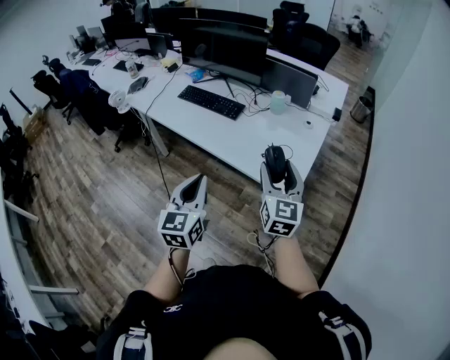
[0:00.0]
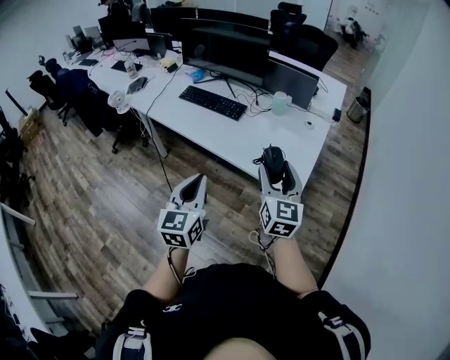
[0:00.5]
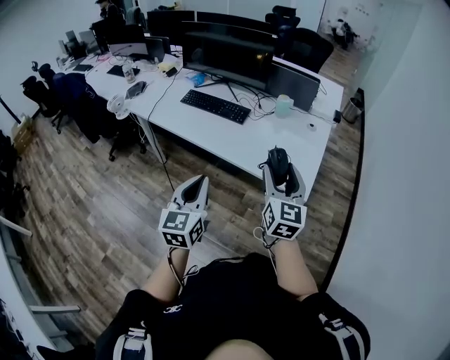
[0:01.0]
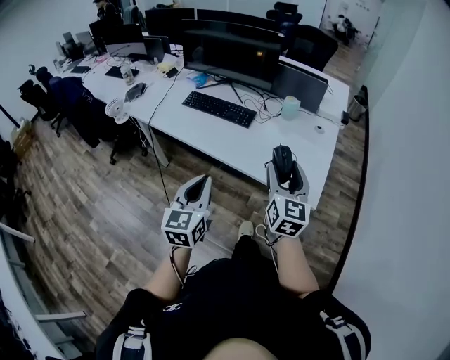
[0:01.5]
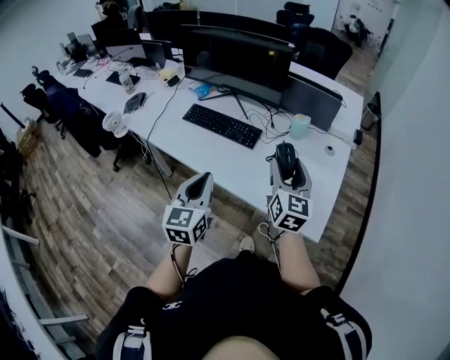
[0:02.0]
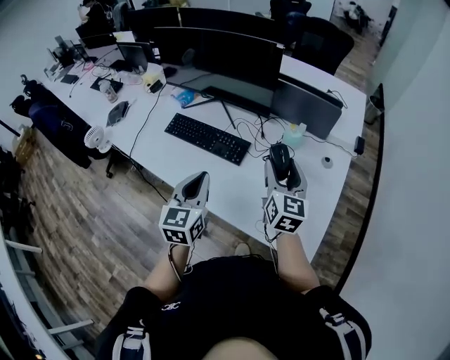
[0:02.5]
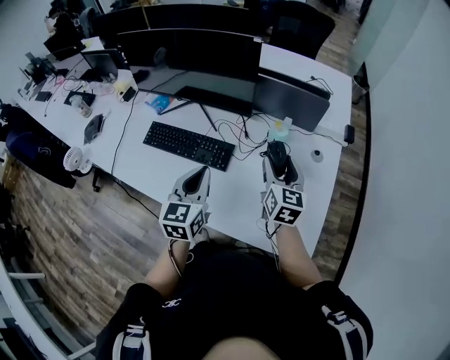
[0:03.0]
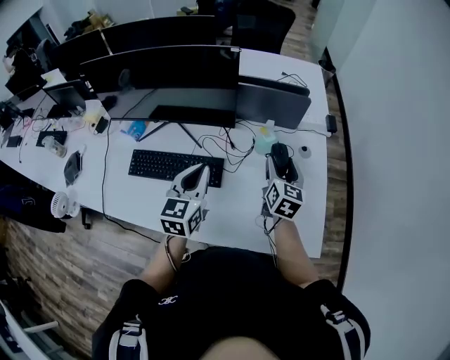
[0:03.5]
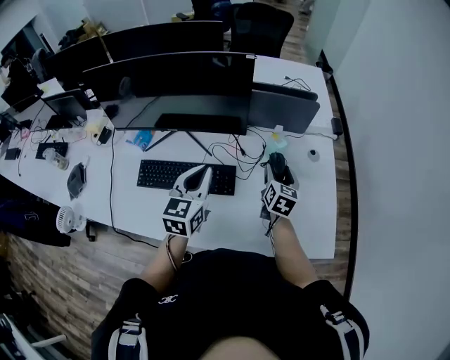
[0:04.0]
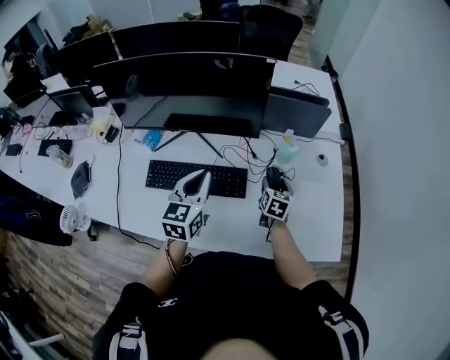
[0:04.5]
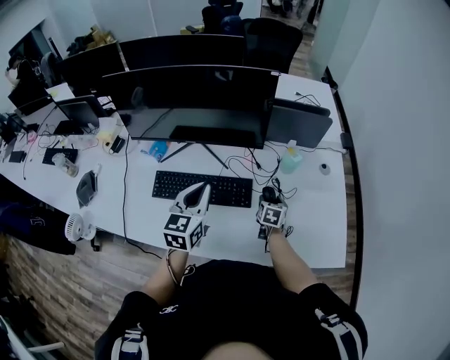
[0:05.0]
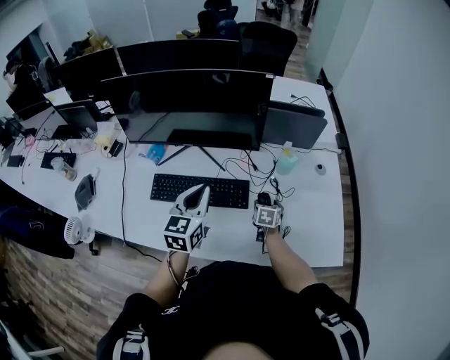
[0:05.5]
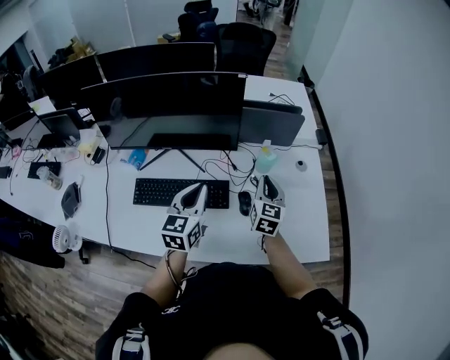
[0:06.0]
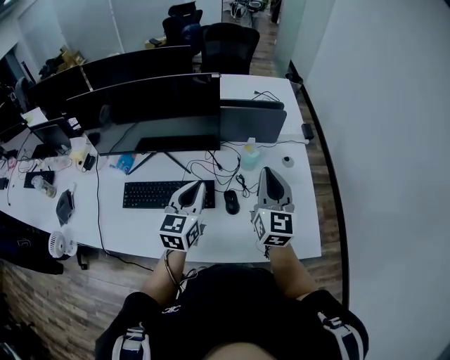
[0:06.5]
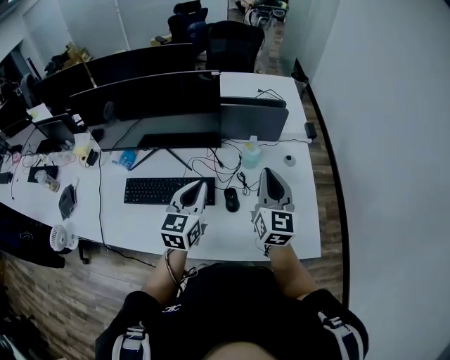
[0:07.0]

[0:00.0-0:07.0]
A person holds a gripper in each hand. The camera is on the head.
0:00.0 to 0:02.0: Both grippers move forward and to the left, some 25 cm.
0:02.0 to 0:03.5: The grippers both shift forward by approximately 30 cm. The left gripper swivels some 20 degrees, while the right gripper rotates approximately 30 degrees.
0:03.5 to 0:05.0: The left gripper shifts roughly 15 cm to the left; the right gripper goes approximately 25 cm downward and to the left, and swivels roughly 30 degrees.
0:05.0 to 0:07.0: The right gripper heads upward, covering some 35 cm, points its fingers roughly 50 degrees further upward, and closes up; the left gripper shifts approximately 15 cm to the right.

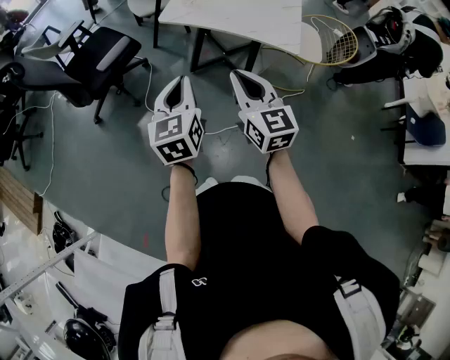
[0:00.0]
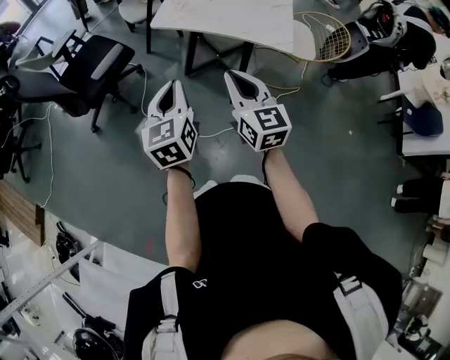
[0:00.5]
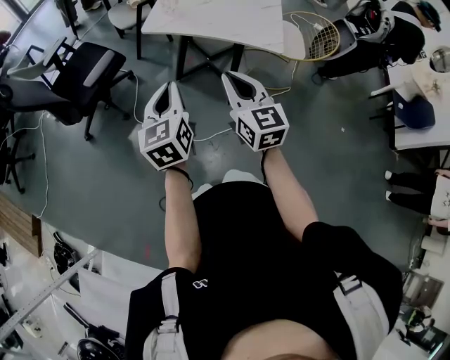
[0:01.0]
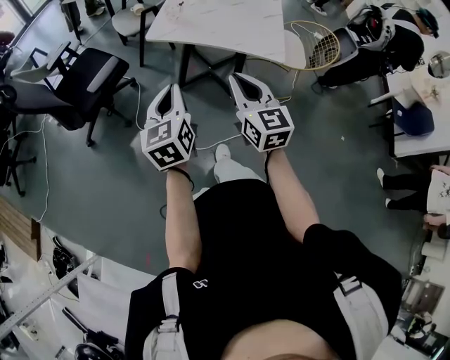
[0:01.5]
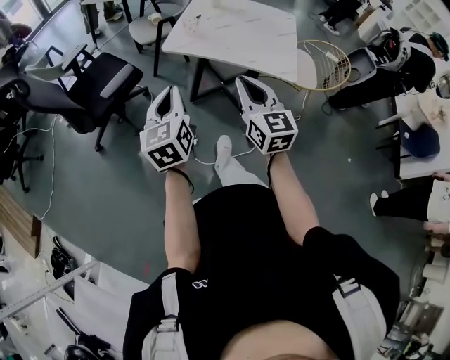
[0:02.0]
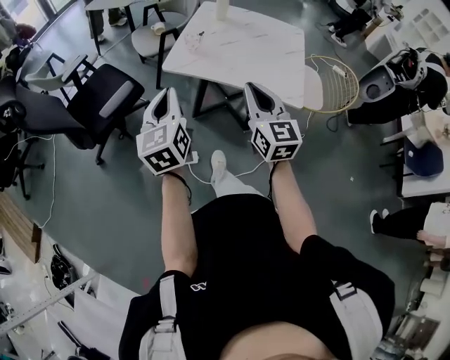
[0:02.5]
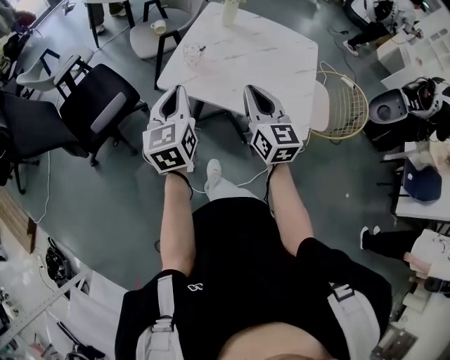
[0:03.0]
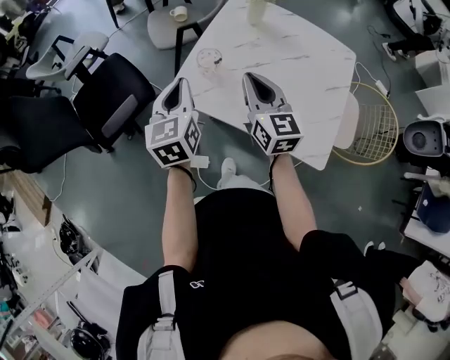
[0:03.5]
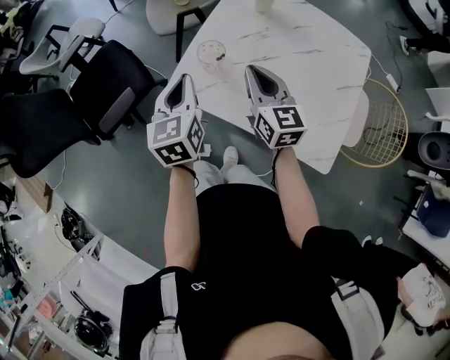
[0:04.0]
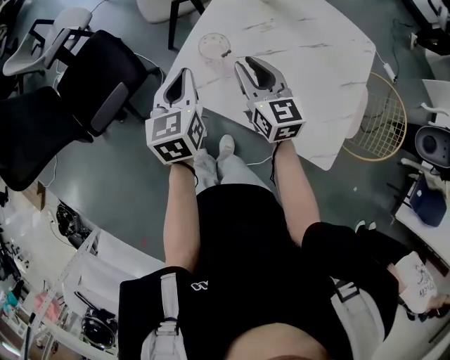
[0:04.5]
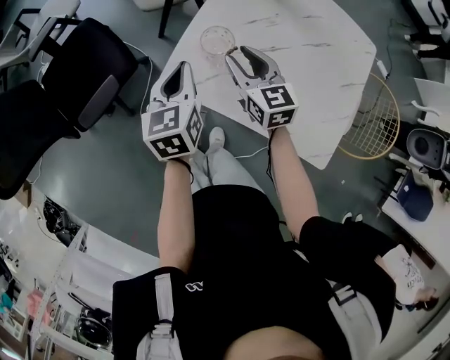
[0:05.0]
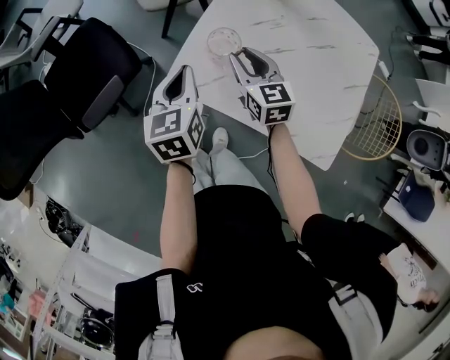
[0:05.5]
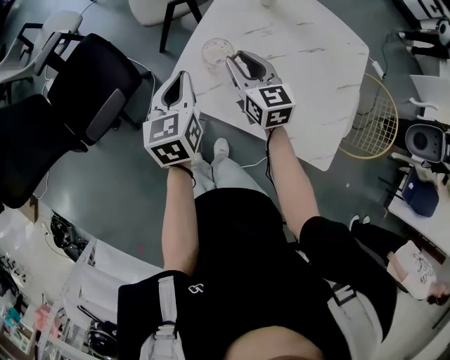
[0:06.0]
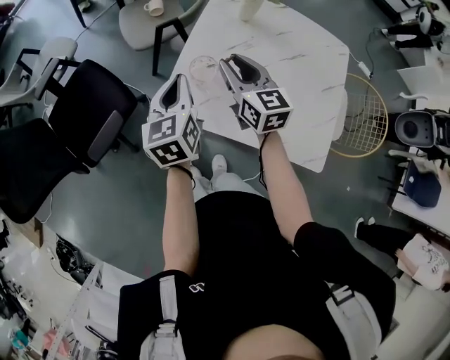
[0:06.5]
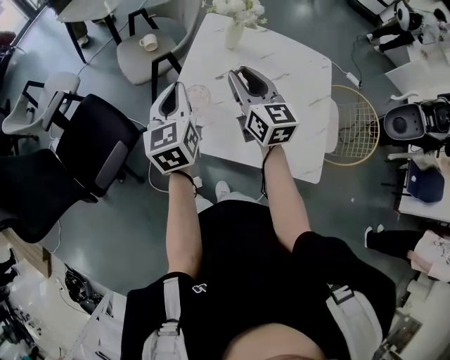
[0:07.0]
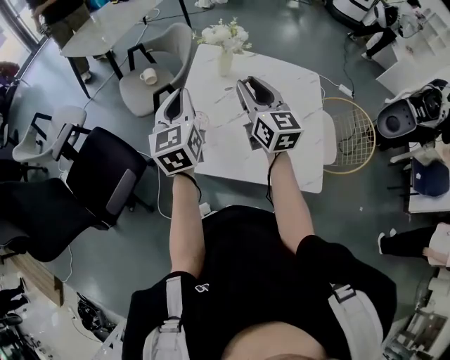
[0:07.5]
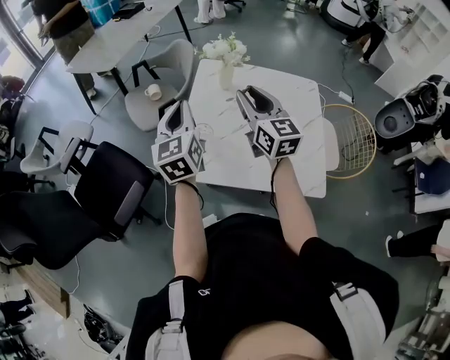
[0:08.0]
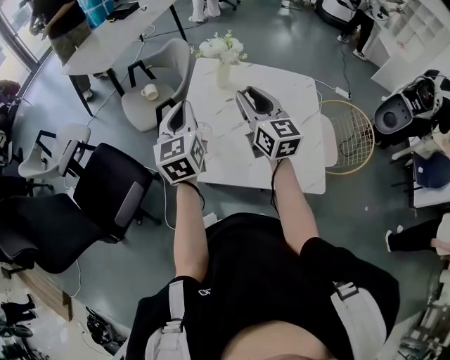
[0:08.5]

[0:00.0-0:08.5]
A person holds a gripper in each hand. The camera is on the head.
0:00.0 to 0:02.0: The grippers both shift forward by approximately 10 cm.
0:02.0 to 0:04.0: The pair of grippers is taken forward, some 40 cm.
0:04.0 to 0:06.5: Both grippers travel together forward, approximately 5 cm. The right gripper goes downward and returns, roughly 10 cm each way, and opens its fingers. Meanwhile the left gripper travels downward and back again, roughly 10 cm each way.
0:06.5 to 0:08.5: The left gripper goes roughly 15 cm upward, while the right gripper moves upward and to the right, about 15 cm.

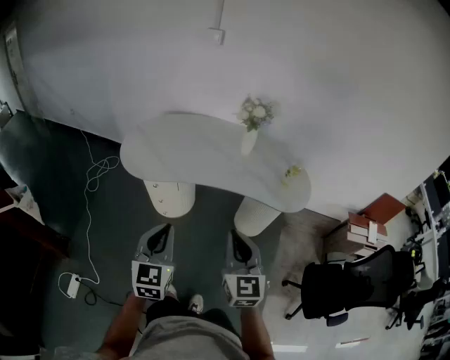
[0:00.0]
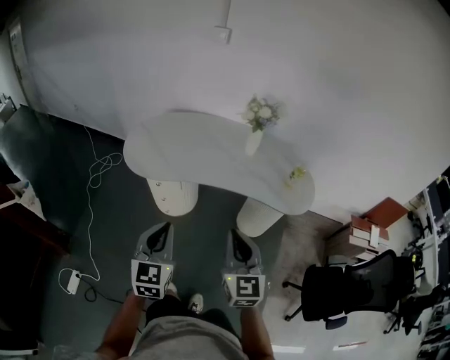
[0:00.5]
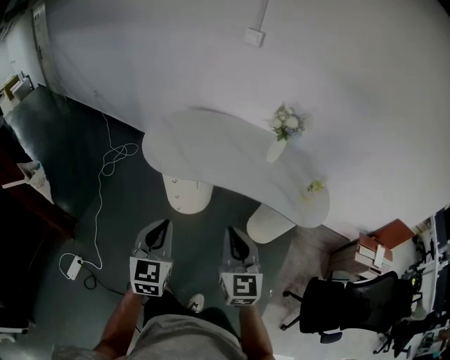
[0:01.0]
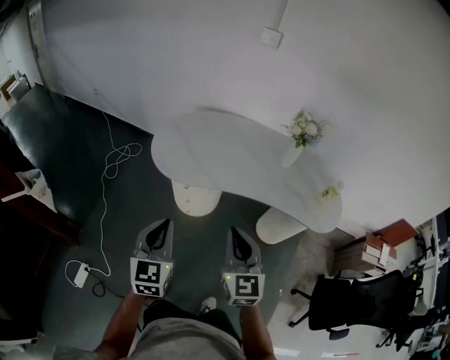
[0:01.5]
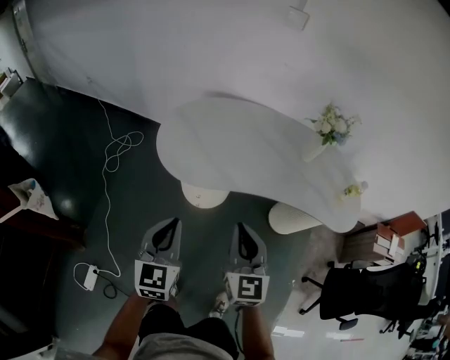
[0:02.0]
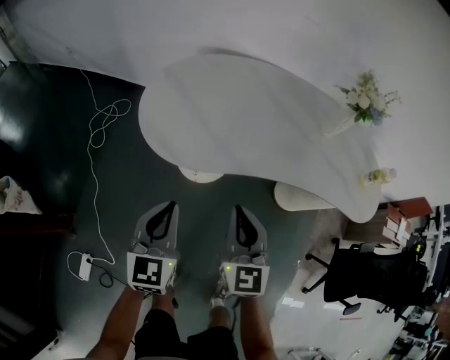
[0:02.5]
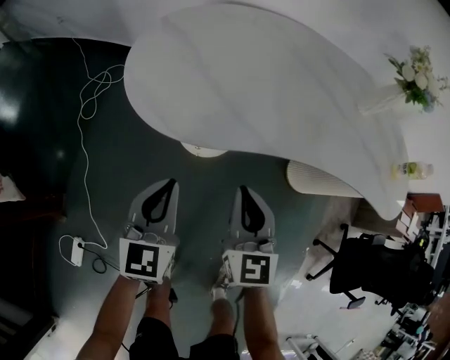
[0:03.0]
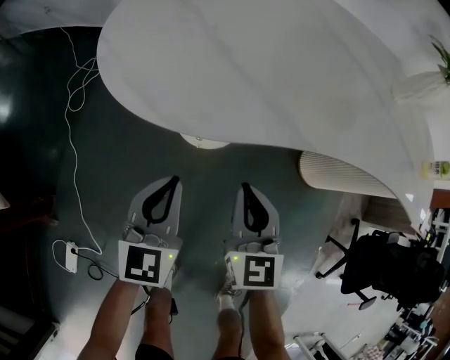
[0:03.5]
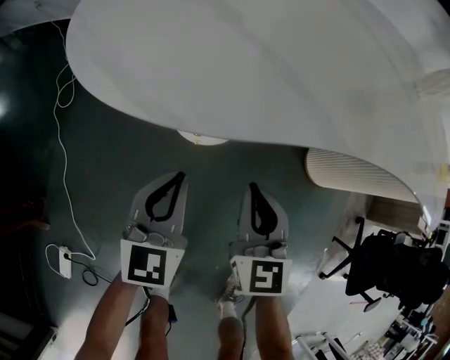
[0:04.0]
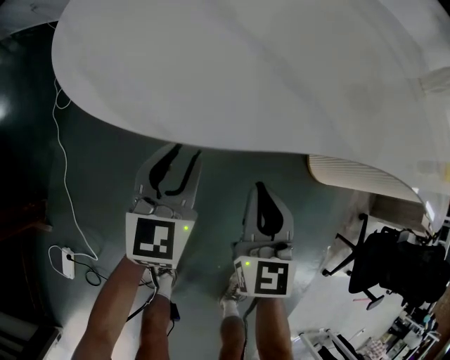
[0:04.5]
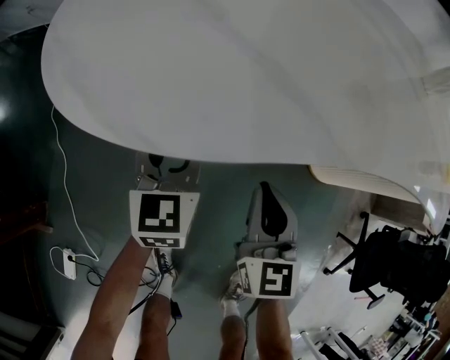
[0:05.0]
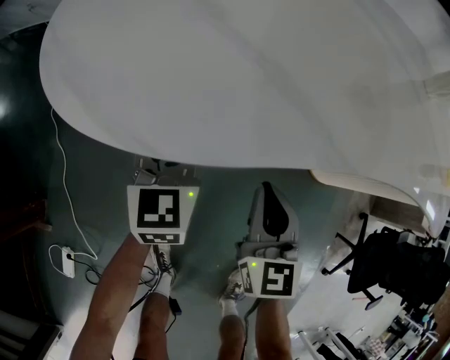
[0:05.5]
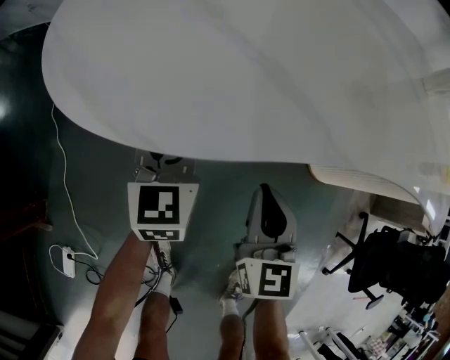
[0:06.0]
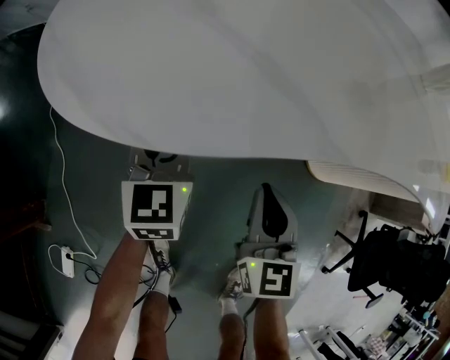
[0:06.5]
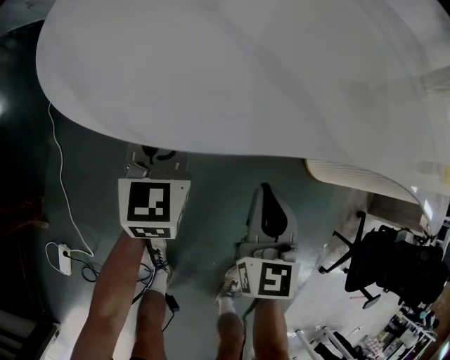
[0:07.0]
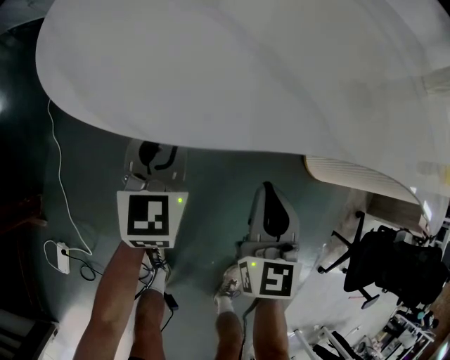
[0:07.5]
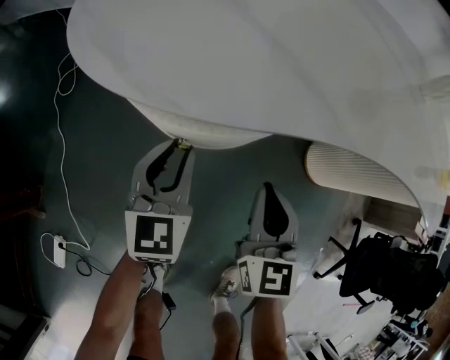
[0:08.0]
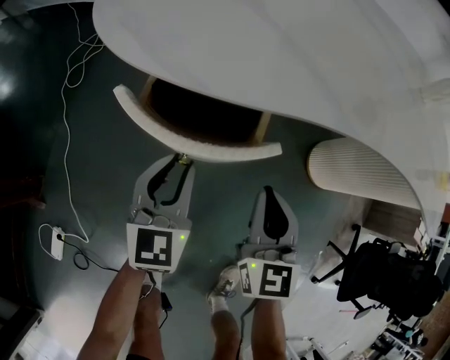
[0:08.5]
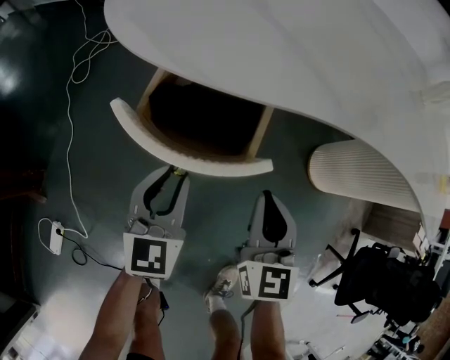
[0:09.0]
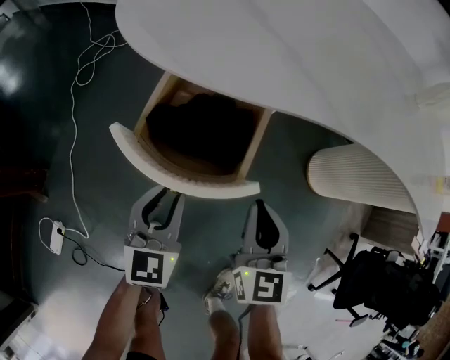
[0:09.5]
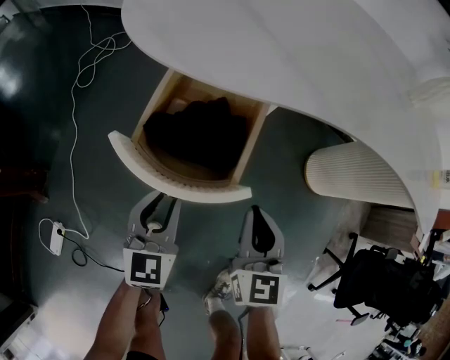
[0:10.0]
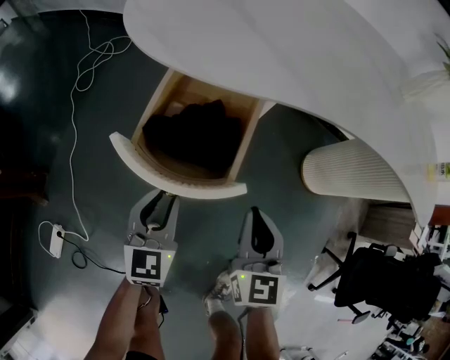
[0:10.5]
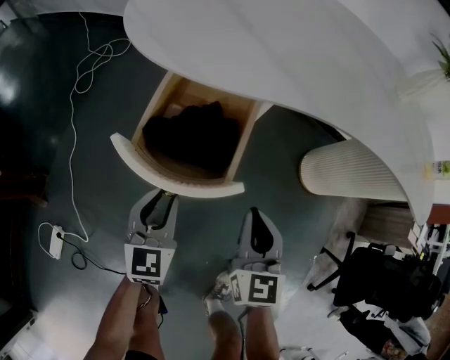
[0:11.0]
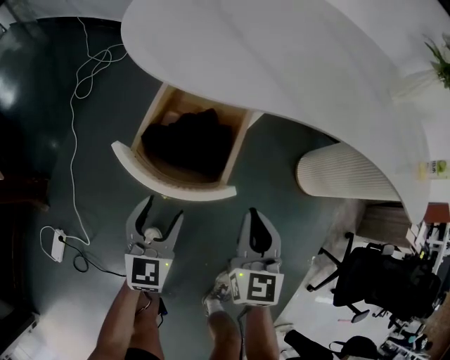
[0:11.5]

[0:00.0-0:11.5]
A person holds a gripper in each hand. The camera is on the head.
0:00.0 to 0:02.0: Both grippers move to the left and forward, approximately 25 cm.
0:02.0 to 0:04.0: The two grippers go about 40 cm downward.
0:04.0 to 0:06.0: The left gripper heads forward, covering about 10 cm.
0:06.0 to 0:07.5: There are only small adjustments of the grippers.
0:07.5 to 0:09.5: The right gripper travels backward by about 10 cm. Meanwhile the left gripper travels backward by approximately 20 cm.
0:09.5 to 0:11.5: The left gripper opens up.
